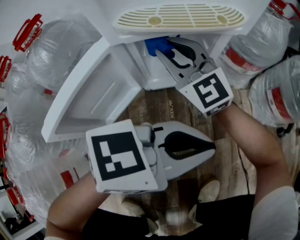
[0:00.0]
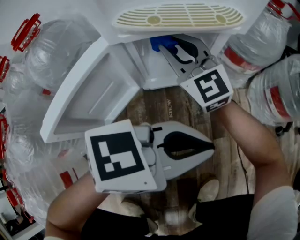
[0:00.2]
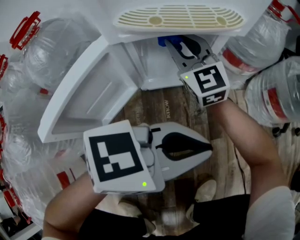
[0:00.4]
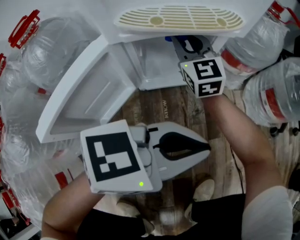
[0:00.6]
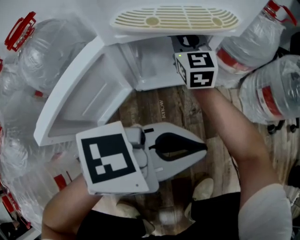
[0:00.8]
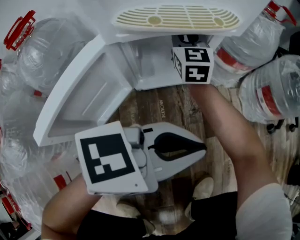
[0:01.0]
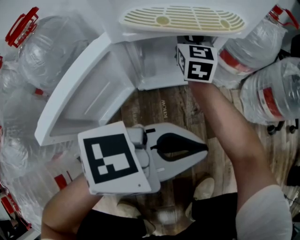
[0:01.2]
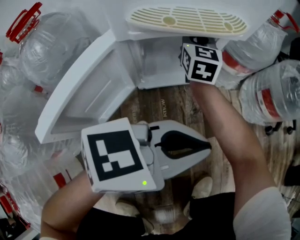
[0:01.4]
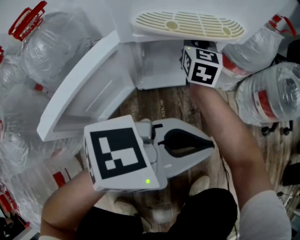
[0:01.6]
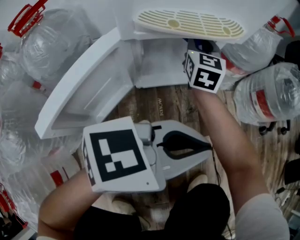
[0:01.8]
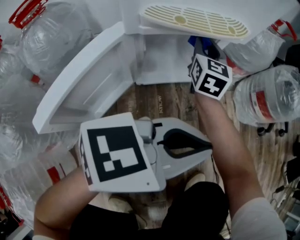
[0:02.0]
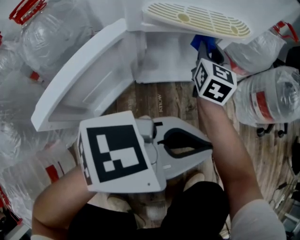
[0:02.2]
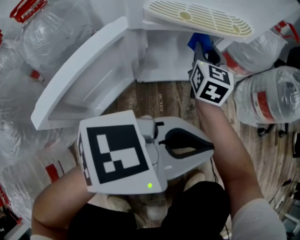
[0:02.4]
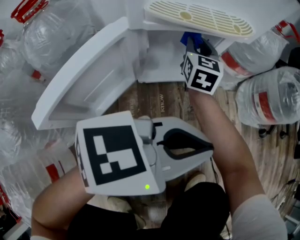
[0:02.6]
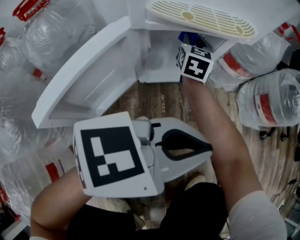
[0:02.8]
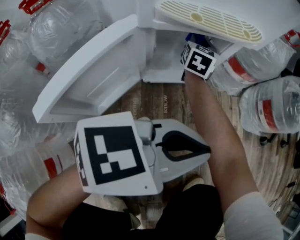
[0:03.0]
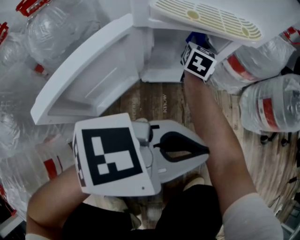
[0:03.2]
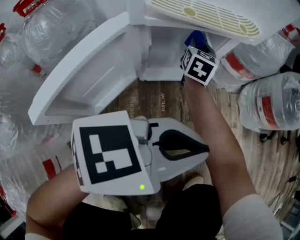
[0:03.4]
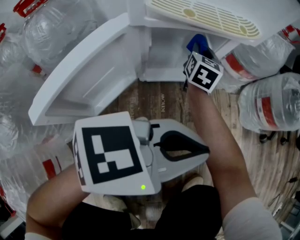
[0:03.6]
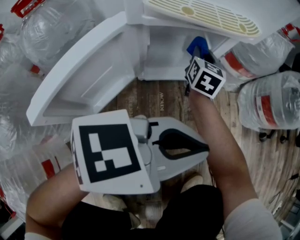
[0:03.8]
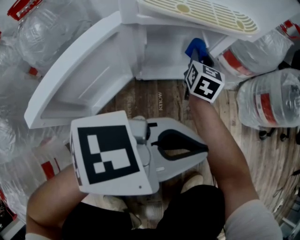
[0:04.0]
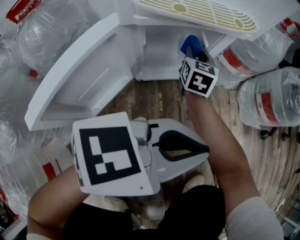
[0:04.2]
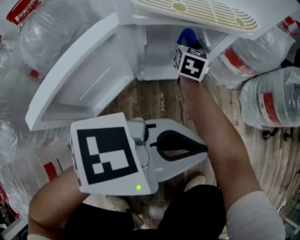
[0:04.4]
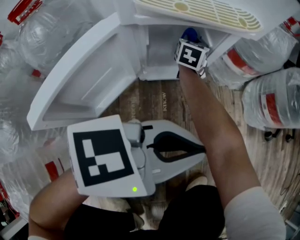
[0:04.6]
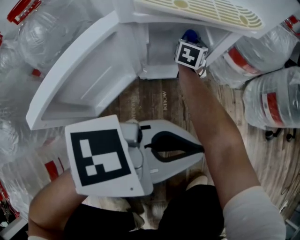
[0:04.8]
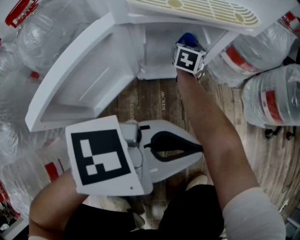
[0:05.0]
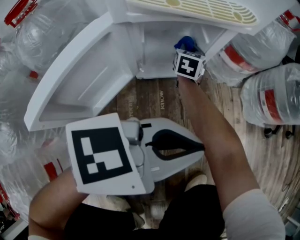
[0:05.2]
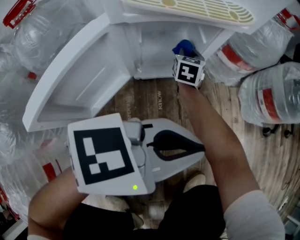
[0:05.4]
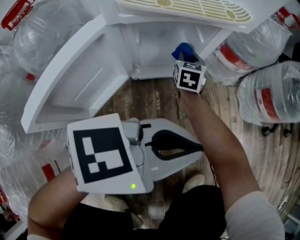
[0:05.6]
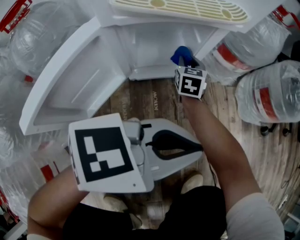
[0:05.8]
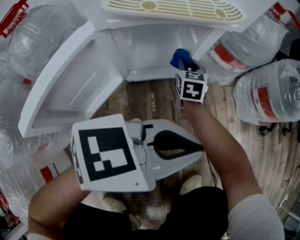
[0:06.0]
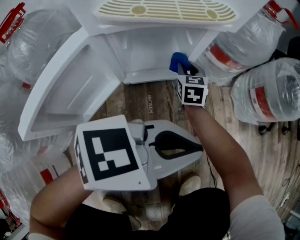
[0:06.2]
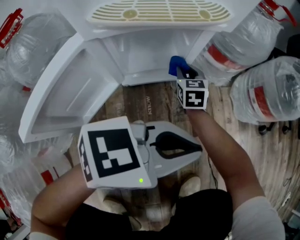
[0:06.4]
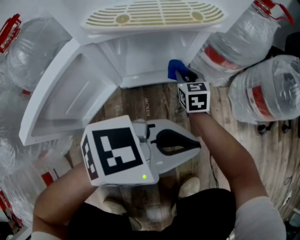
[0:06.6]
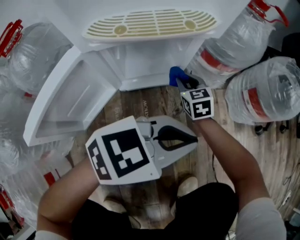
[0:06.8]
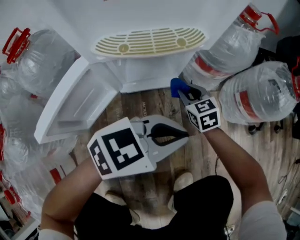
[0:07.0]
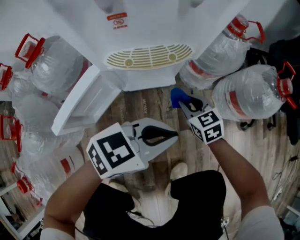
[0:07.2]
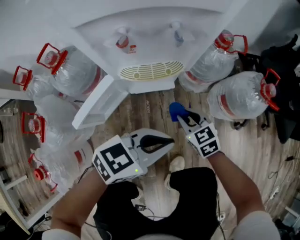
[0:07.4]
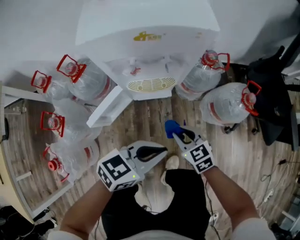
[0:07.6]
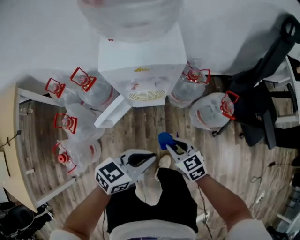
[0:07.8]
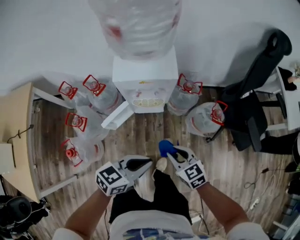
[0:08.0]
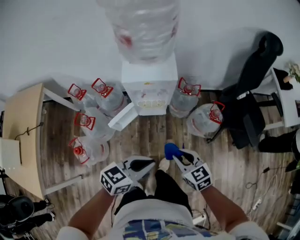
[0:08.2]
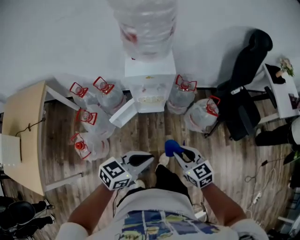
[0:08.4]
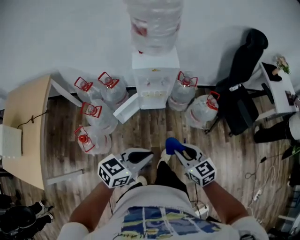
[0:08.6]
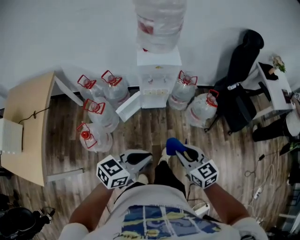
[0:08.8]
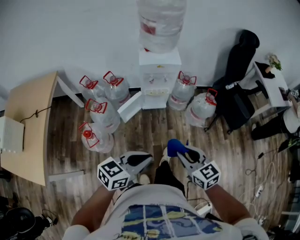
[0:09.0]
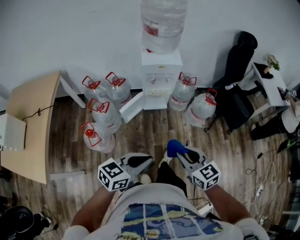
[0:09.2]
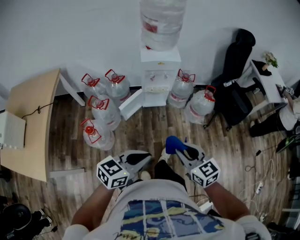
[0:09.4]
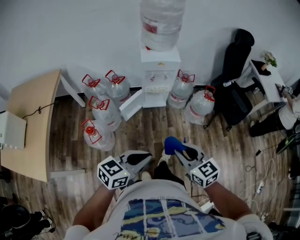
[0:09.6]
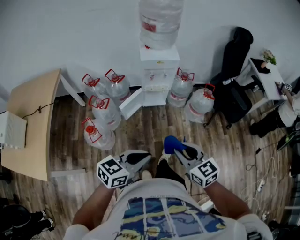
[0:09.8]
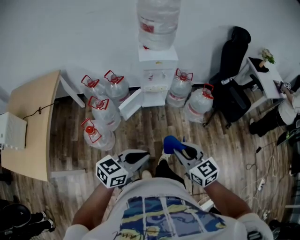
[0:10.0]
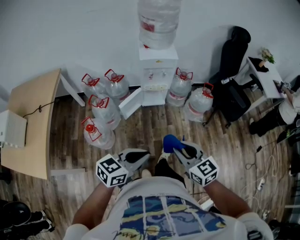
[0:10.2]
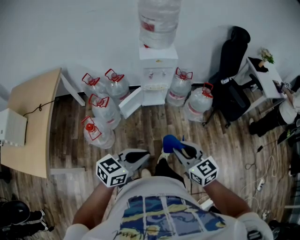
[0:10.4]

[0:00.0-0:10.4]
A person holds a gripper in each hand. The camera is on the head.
0:00.0 to 0:01.4: The right gripper goes roughly 15 cm forward, and turns by about 40 degrees.
0:01.4 to 0:03.0: The right gripper moves downward, roughly 5 cm.
0:04.4 to 0:06.0: The right gripper is displaced to the right and downward by some 10 cm.
0:06.0 to 0:07.4: The grippers both shift upward by about 20 cm. The right gripper changes its angle by some 40 degrees.
0:07.4 to 0:09.0: The two grippers go about 70 cm upward and backward.
0:09.0 to 0:10.4: Both grippers move backward, some 10 cm.

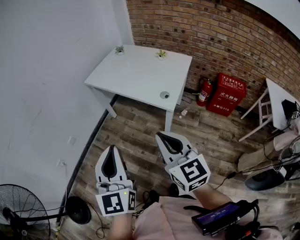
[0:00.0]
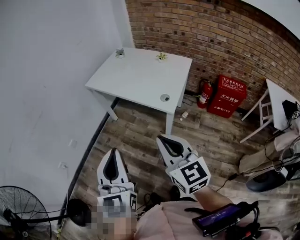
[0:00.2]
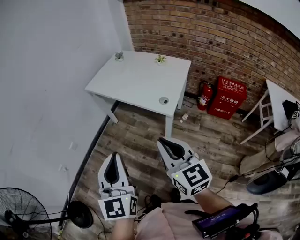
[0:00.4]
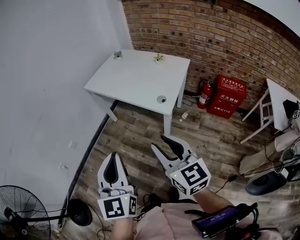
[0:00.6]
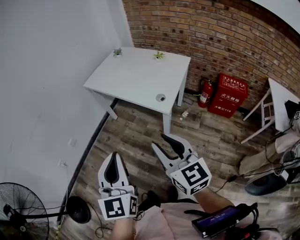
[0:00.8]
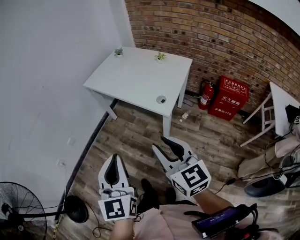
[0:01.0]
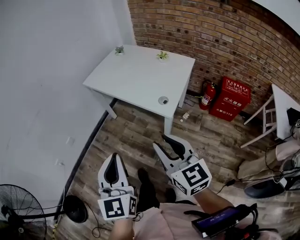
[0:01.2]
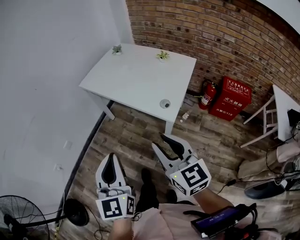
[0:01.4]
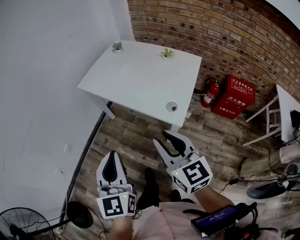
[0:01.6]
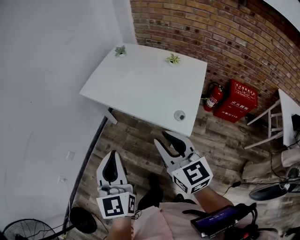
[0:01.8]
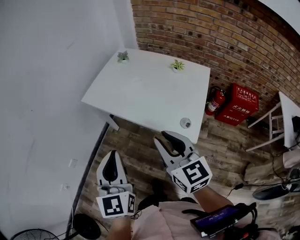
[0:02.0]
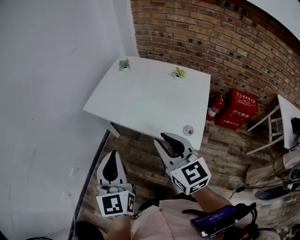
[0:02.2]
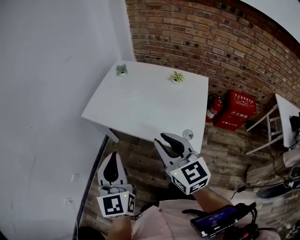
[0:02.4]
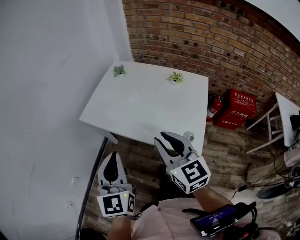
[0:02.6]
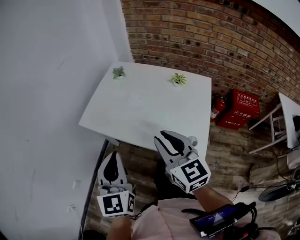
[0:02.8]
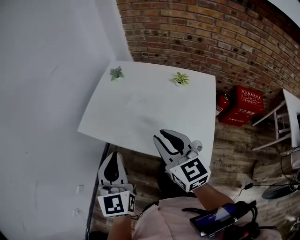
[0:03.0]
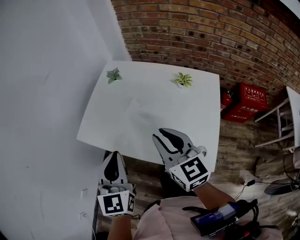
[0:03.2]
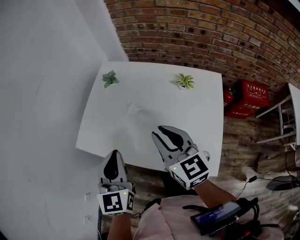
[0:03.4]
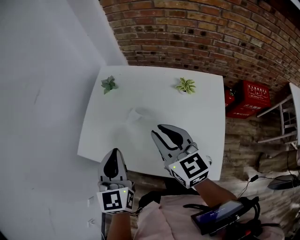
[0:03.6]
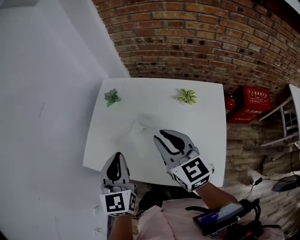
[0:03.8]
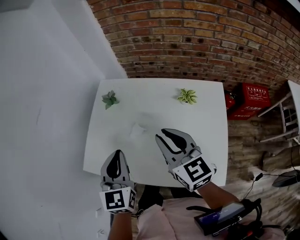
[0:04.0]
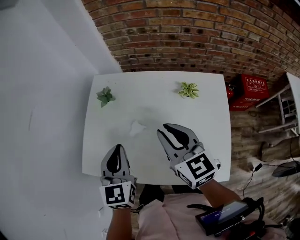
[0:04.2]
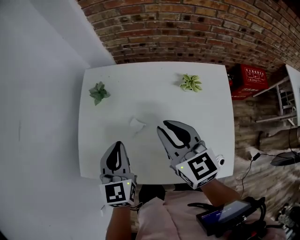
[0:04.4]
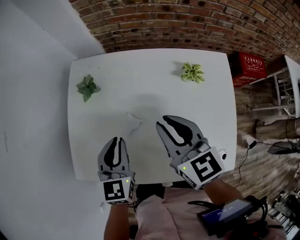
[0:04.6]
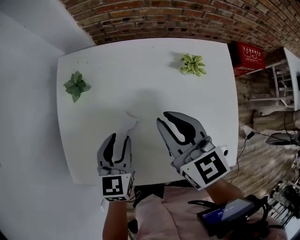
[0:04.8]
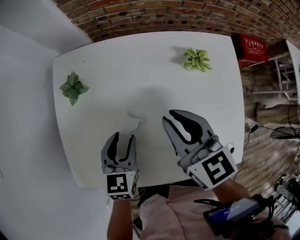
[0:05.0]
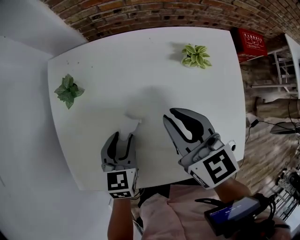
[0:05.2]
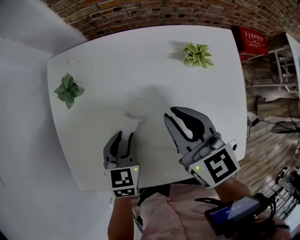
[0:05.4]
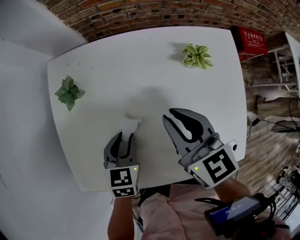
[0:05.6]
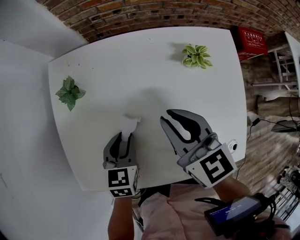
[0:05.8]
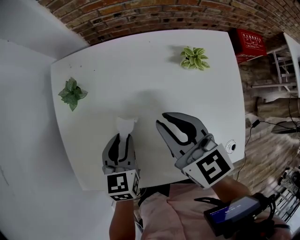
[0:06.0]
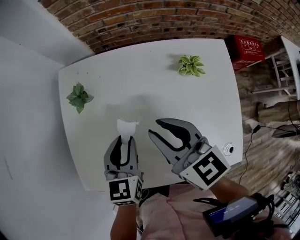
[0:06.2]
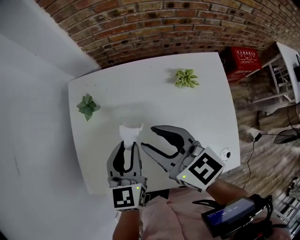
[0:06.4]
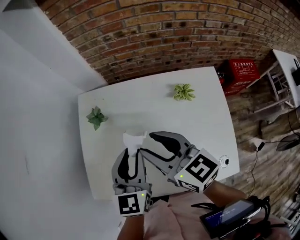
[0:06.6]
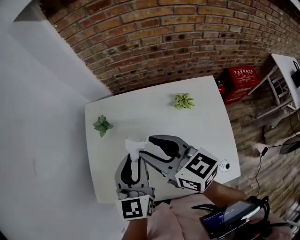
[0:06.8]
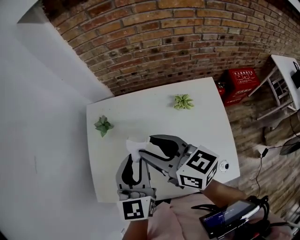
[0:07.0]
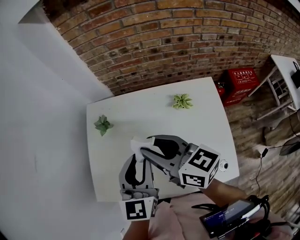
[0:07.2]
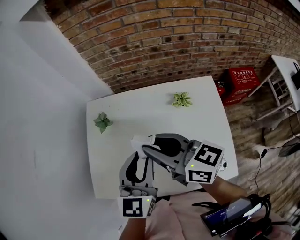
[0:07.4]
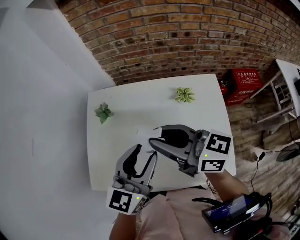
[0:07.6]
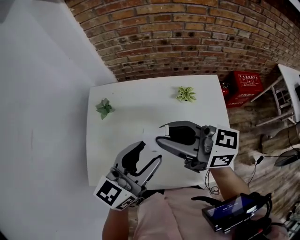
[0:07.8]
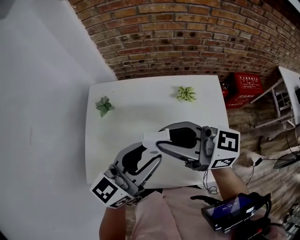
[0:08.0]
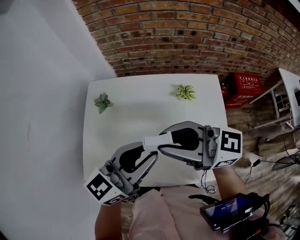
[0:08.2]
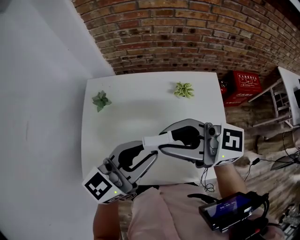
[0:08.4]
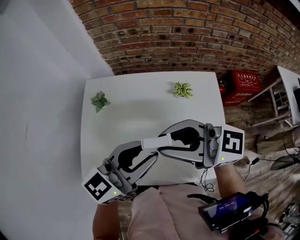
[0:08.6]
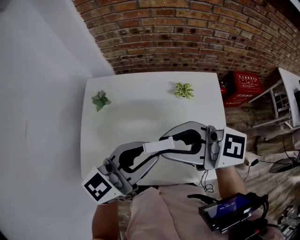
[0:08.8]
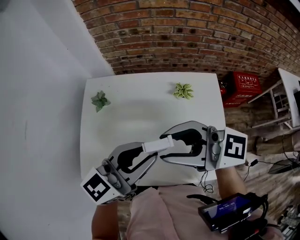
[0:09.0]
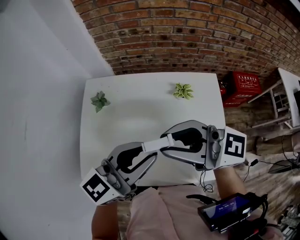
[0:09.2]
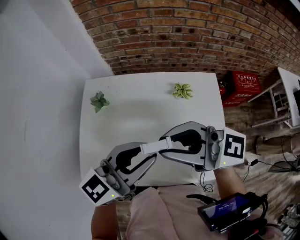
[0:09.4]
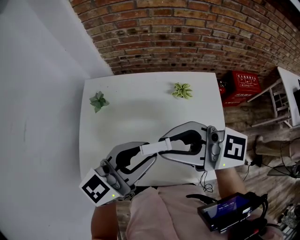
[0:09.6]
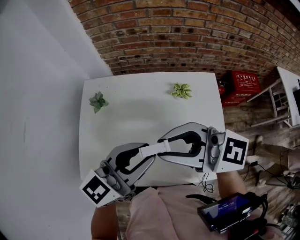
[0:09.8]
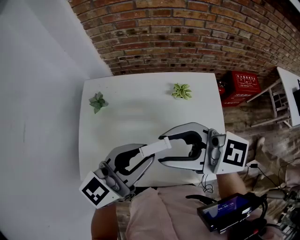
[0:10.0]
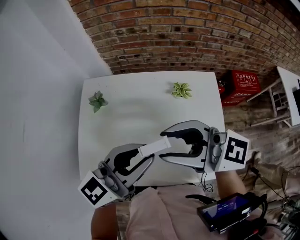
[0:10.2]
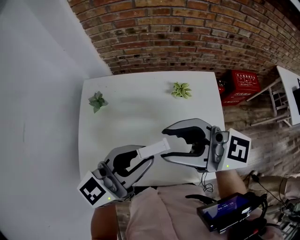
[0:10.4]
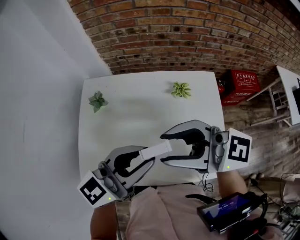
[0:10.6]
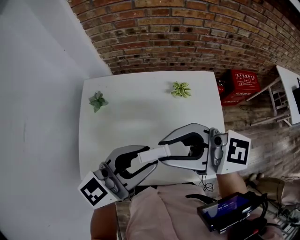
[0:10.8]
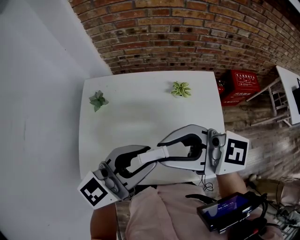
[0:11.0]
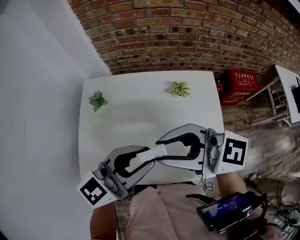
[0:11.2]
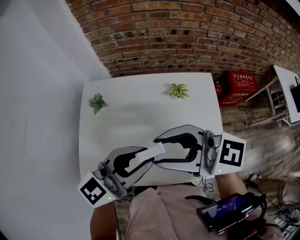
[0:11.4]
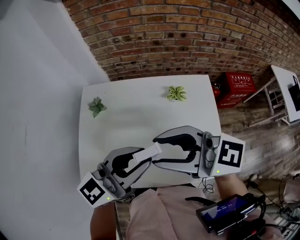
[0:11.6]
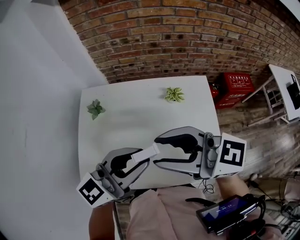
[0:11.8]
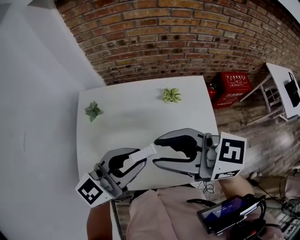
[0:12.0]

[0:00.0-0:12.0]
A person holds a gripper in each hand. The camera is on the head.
0:00.0 to 0:01.6: The right gripper is displaced forward by about 15 cm, while the left gripper goes some 15 cm forward and downward.
0:01.6 to 0:03.0: The grippers both shift forward by about 30 cm.
0:03.0 to 0:04.4: The two grippers go roughly 25 cm forward. The left gripper swivels roughly 20 degrees.
0:04.4 to 0:06.0: The right gripper goes roughly 10 cm downward. Meanwhile the left gripper heads downward, covering approximately 15 cm, swivels about 20 degrees, and opens its fingers.
0:06.0 to 0:07.6: The grippers both shift upward by about 20 cm. The right gripper turns by approximately 40 degrees. The left gripper tips its fingers upward by approximately 30 degrees.
0:07.6 to 0:09.0: The right gripper changes place by about 5 cm, and turns by roughly 30 degrees, while the left gripper shifts by roughly 5 cm, and turns by roughly 30 degrees.
0:09.0 to 0:12.0: The grippers move only a little.

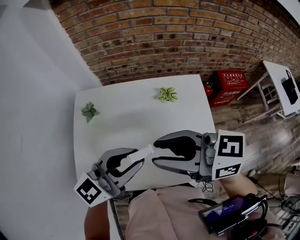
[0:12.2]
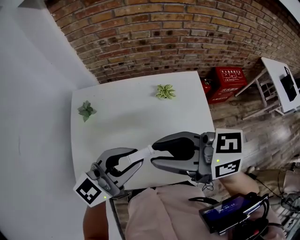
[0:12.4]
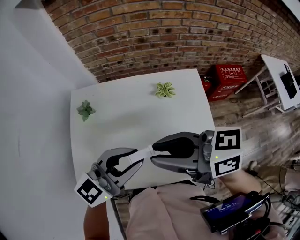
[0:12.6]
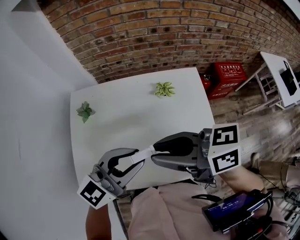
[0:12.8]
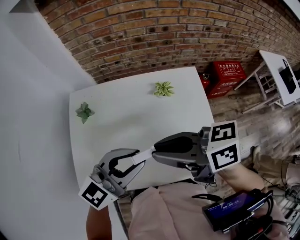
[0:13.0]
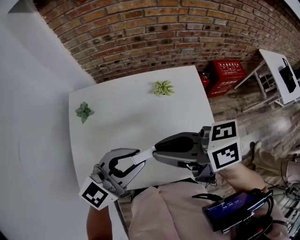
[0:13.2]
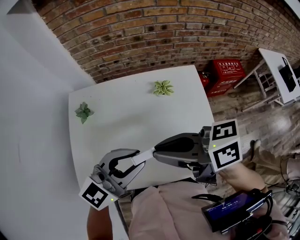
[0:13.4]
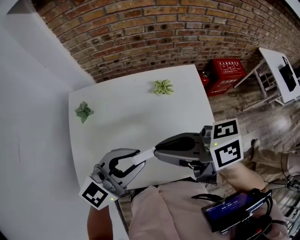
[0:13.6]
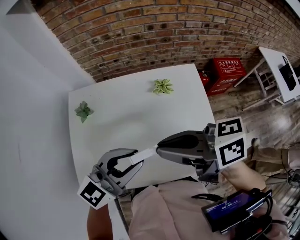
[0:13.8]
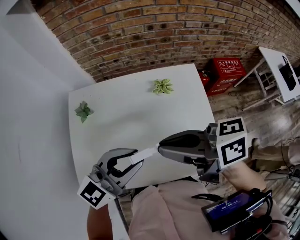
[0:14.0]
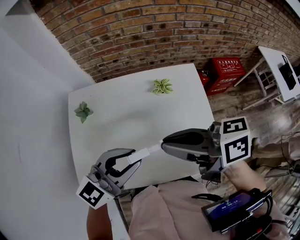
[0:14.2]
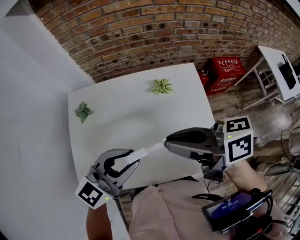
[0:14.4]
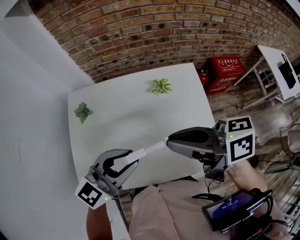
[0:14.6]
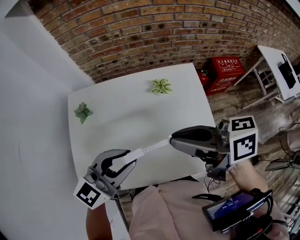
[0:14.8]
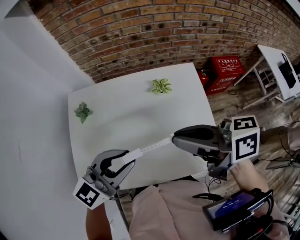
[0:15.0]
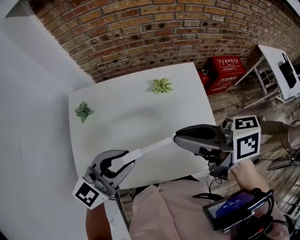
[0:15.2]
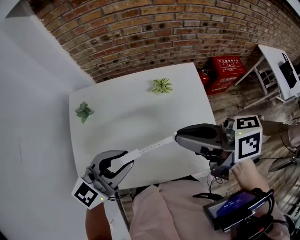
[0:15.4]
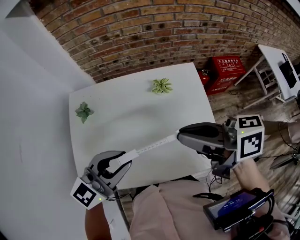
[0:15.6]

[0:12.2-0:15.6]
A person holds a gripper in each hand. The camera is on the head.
0:12.2 to 0:13.8: The right gripper turns by roughly 20 degrees.
0:13.8 to 0:15.6: The right gripper ends up roughly 5 cm from where it was.
